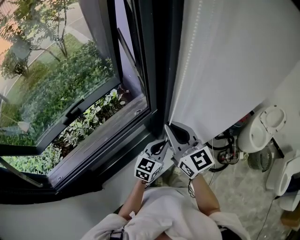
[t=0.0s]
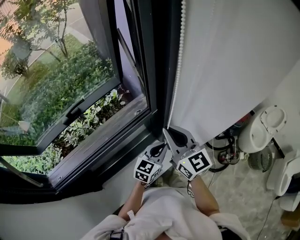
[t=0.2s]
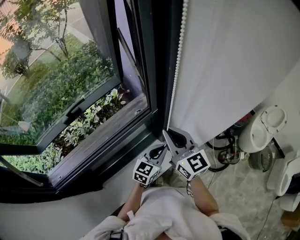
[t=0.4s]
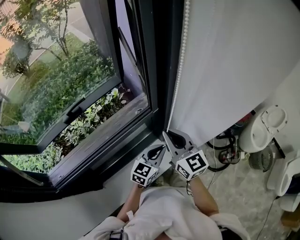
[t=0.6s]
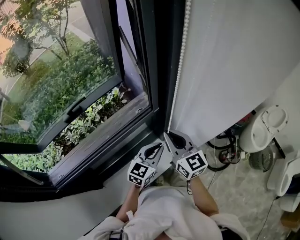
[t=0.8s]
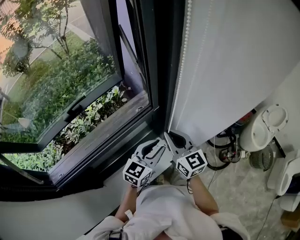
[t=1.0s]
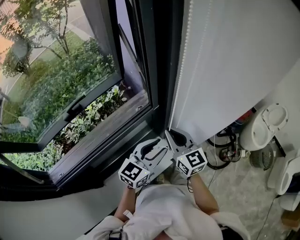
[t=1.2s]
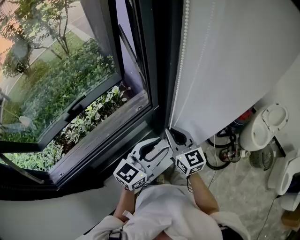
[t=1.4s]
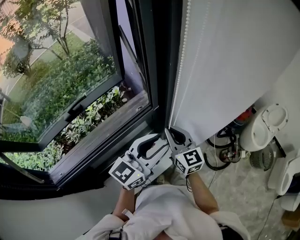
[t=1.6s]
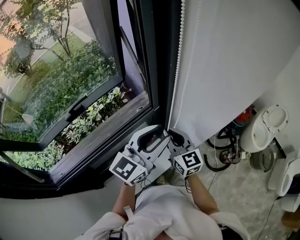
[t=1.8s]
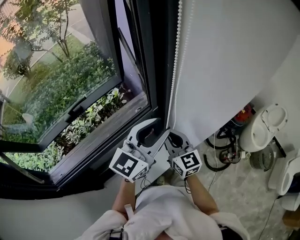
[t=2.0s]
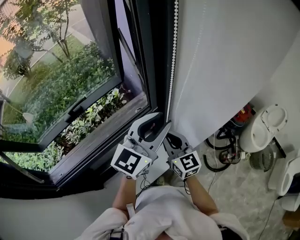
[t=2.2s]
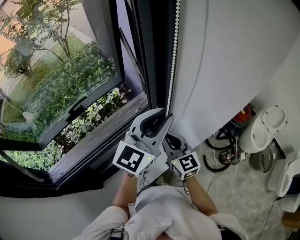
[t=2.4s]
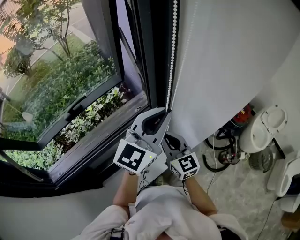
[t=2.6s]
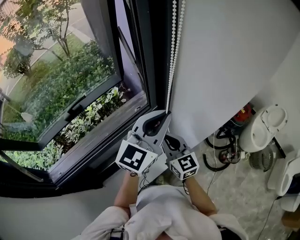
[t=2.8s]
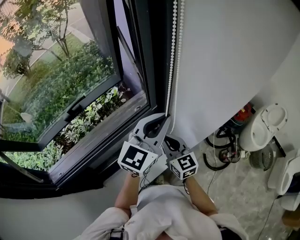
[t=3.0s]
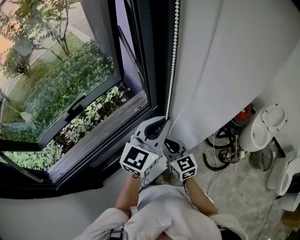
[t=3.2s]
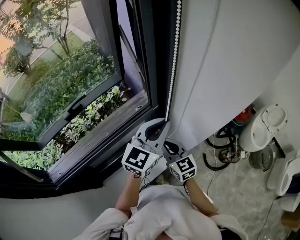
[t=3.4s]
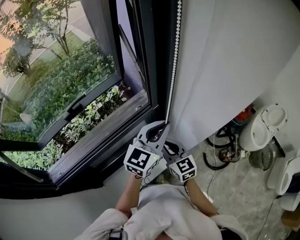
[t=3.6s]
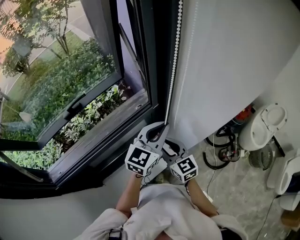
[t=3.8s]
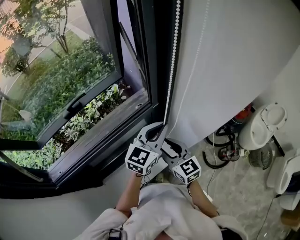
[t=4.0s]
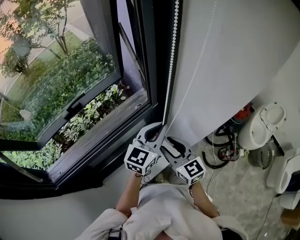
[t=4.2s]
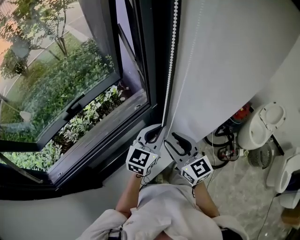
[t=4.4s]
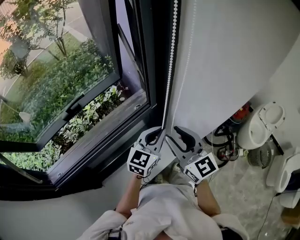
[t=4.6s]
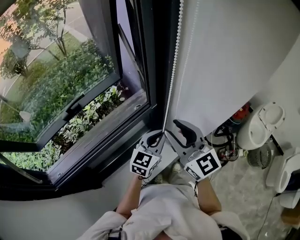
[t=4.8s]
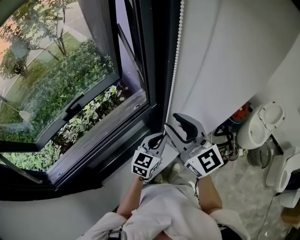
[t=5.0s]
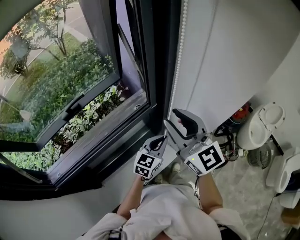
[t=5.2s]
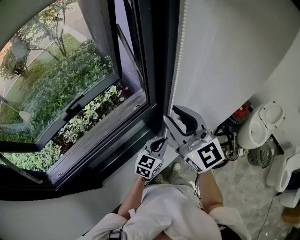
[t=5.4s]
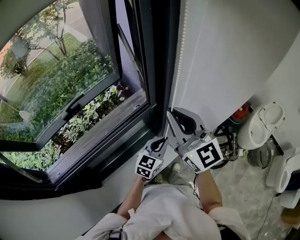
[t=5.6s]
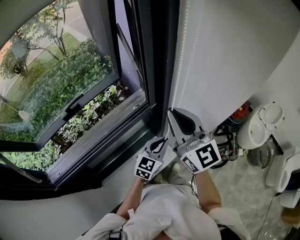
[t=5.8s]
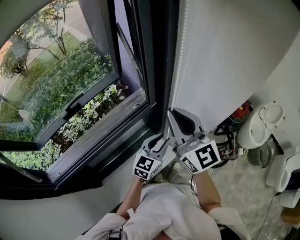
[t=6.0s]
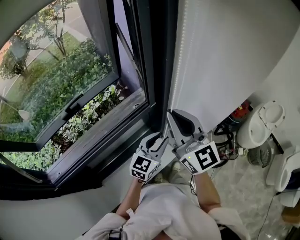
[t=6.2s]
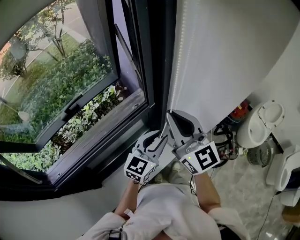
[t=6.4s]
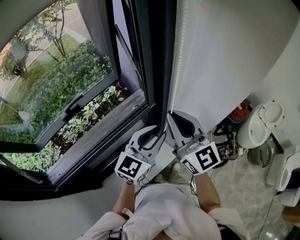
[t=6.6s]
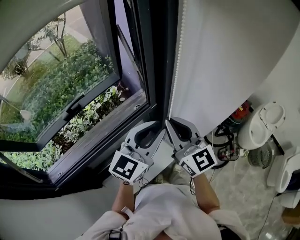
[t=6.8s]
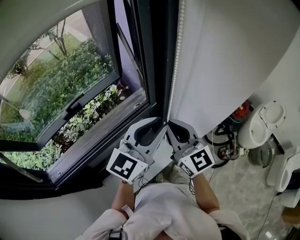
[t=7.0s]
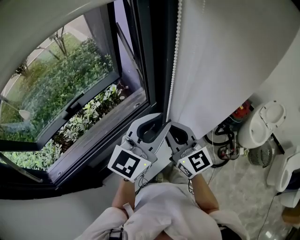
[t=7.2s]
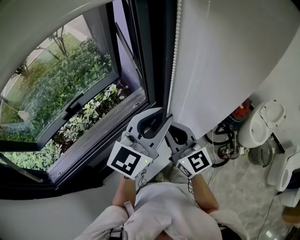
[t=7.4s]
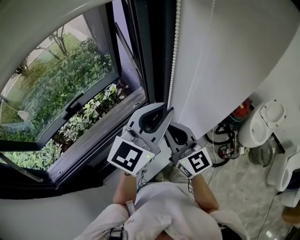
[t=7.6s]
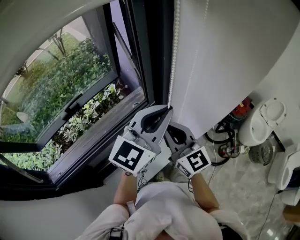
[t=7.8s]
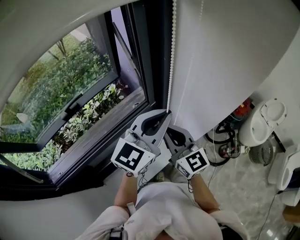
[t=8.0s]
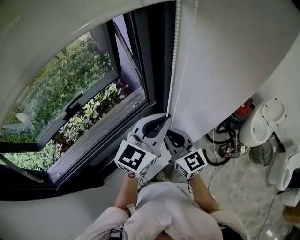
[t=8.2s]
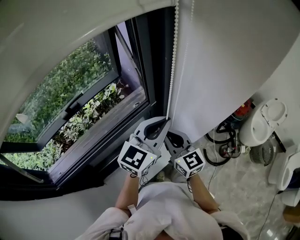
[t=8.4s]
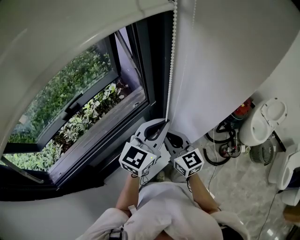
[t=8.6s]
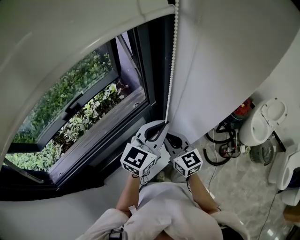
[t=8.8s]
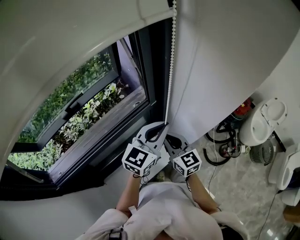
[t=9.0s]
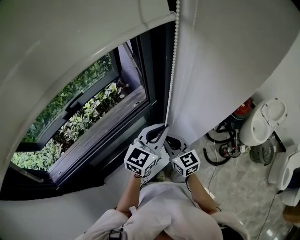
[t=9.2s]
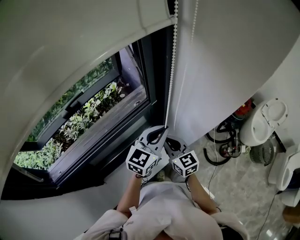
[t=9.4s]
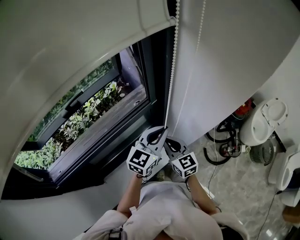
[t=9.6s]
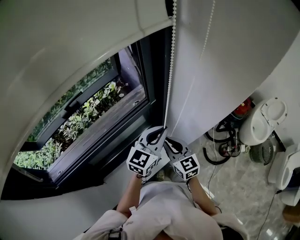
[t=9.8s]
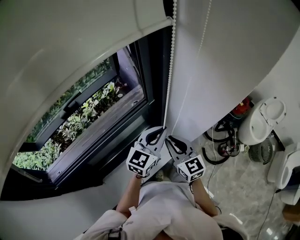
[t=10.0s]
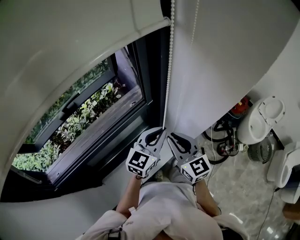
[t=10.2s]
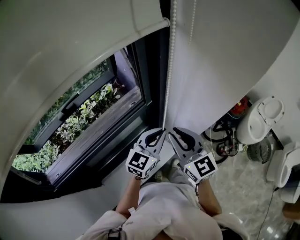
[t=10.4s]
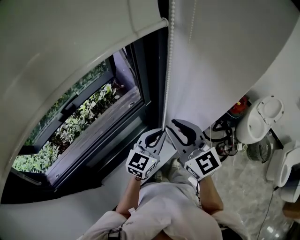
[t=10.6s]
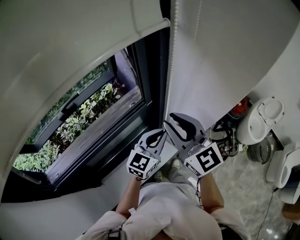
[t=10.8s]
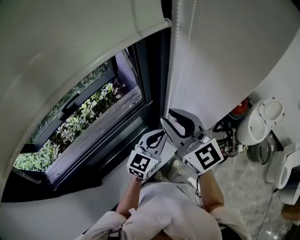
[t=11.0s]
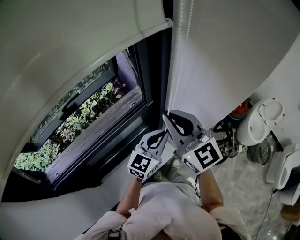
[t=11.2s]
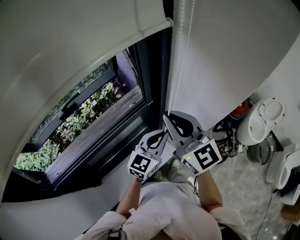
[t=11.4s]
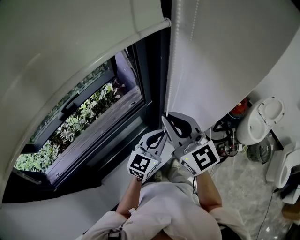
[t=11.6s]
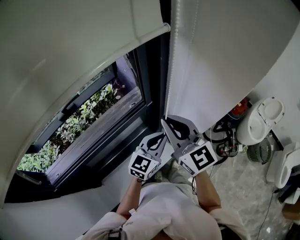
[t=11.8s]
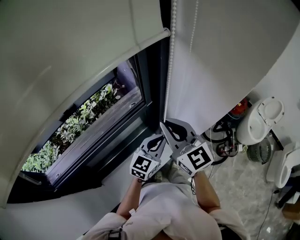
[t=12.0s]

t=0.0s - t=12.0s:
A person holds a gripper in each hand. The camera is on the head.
t=0.0s - t=1.6s: The left gripper is displaced upward by roughly 15 cm, and opens its fingers; the right gripper moves downward, roughly 10 cm.
t=1.6s - t=3.0s: The left gripper travels forward and upward by some 10 cm, and closes its fingers.
t=3.0s - t=4.4s: The left gripper heads downward, covering some 10 cm. The right gripper heads upward, covering roughly 5 cm, and opens its fingers.
t=4.4s - t=6.0s: The left gripper is displaced downward by roughly 10 cm, and opens its fingers, while the right gripper goes some 15 cm upward, and closes up.
t=6.0s - t=7.6s: The right gripper is displaced downward by some 5 cm; the left gripper travels upward by approximately 25 cm, and turns by approximately 20 degrees.
t=7.6s - t=9.0s: The grippers both shift downward by roughly 15 cm.
t=9.0s - t=10.4s: The left gripper shifts by approximately 5 cm. Meanwhile the right gripper shifts about 10 cm upward.

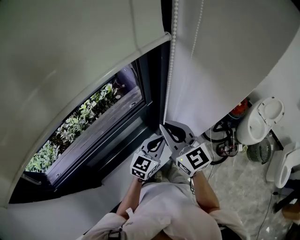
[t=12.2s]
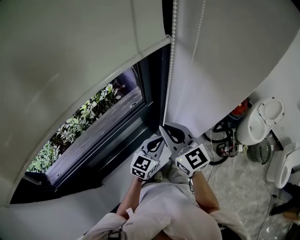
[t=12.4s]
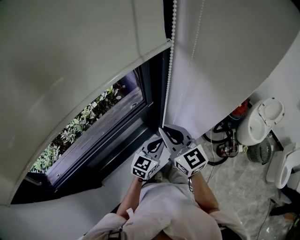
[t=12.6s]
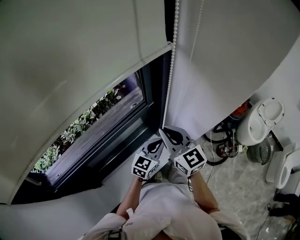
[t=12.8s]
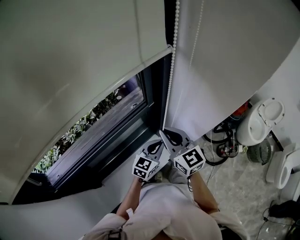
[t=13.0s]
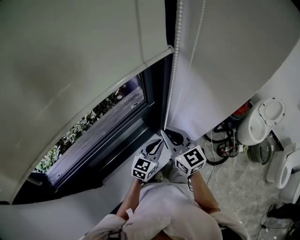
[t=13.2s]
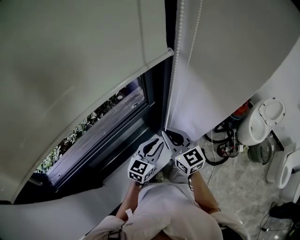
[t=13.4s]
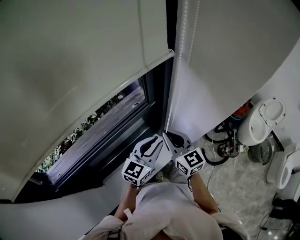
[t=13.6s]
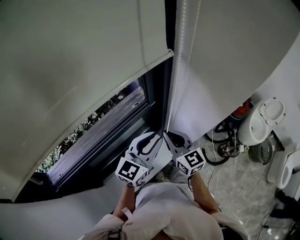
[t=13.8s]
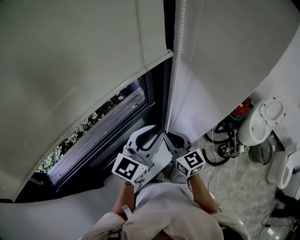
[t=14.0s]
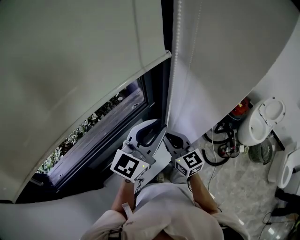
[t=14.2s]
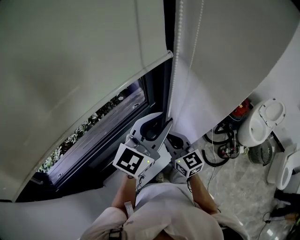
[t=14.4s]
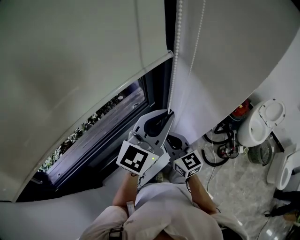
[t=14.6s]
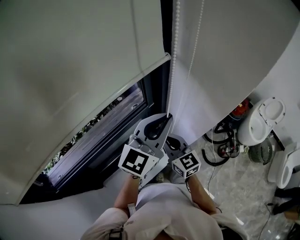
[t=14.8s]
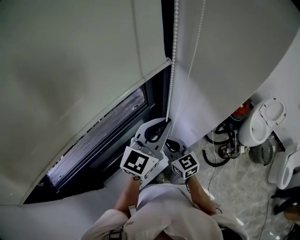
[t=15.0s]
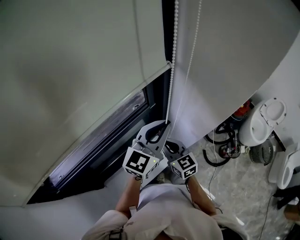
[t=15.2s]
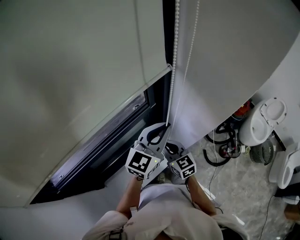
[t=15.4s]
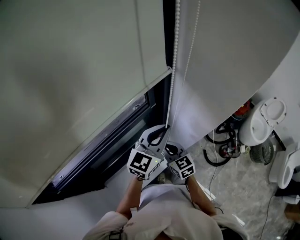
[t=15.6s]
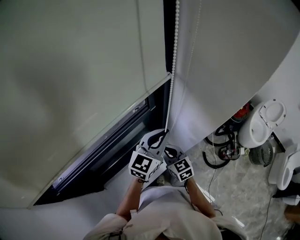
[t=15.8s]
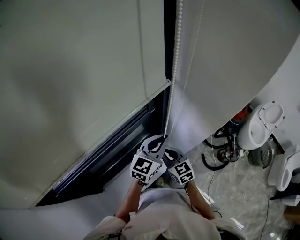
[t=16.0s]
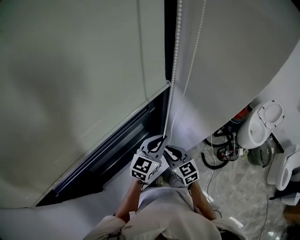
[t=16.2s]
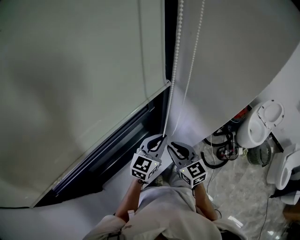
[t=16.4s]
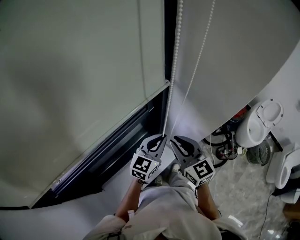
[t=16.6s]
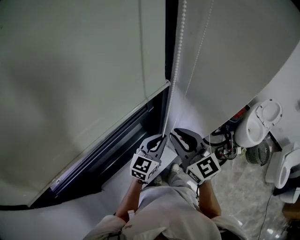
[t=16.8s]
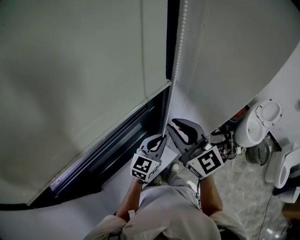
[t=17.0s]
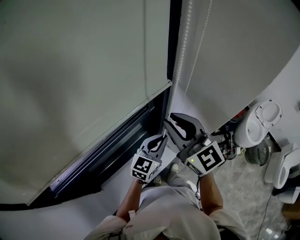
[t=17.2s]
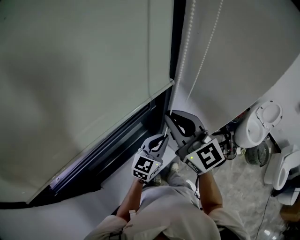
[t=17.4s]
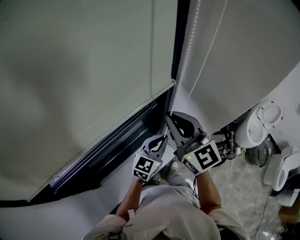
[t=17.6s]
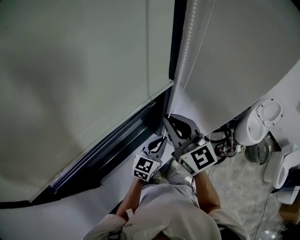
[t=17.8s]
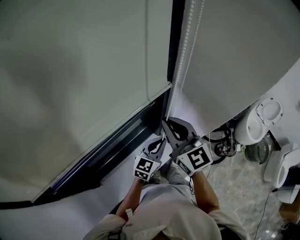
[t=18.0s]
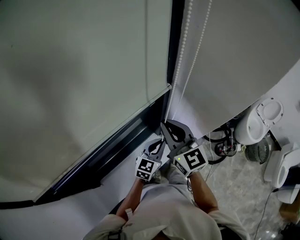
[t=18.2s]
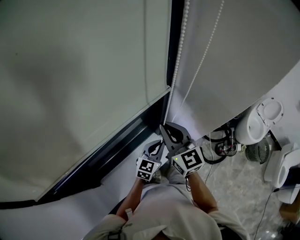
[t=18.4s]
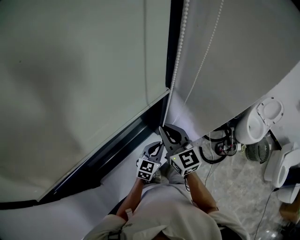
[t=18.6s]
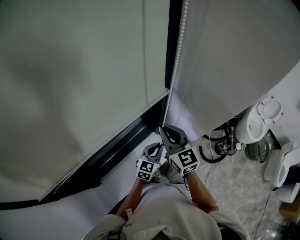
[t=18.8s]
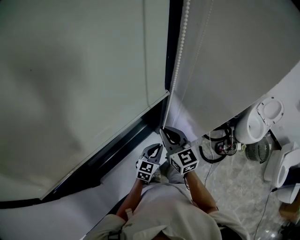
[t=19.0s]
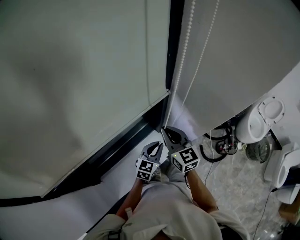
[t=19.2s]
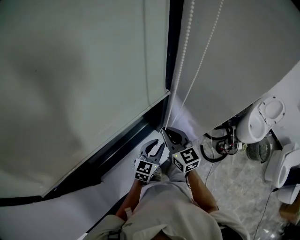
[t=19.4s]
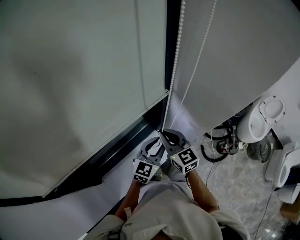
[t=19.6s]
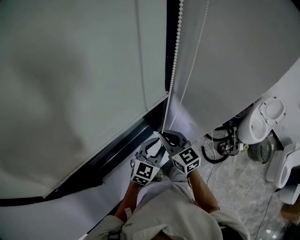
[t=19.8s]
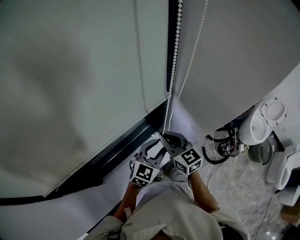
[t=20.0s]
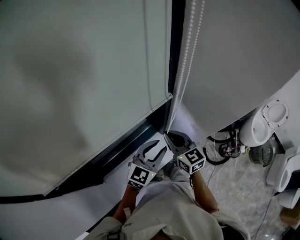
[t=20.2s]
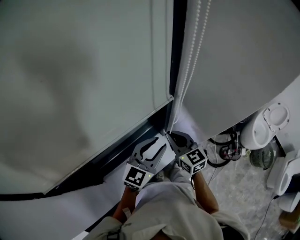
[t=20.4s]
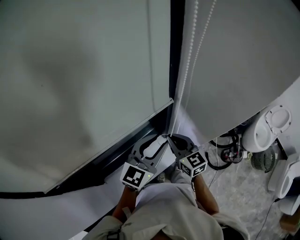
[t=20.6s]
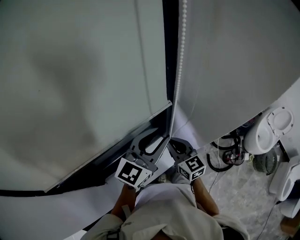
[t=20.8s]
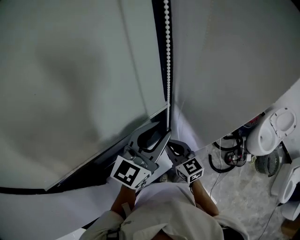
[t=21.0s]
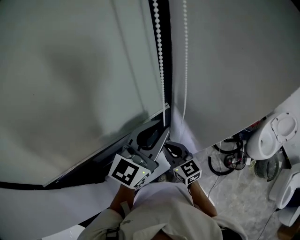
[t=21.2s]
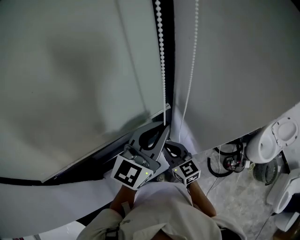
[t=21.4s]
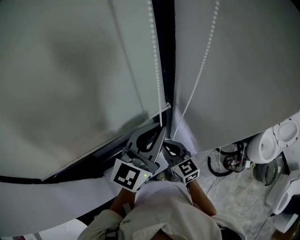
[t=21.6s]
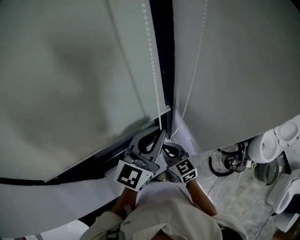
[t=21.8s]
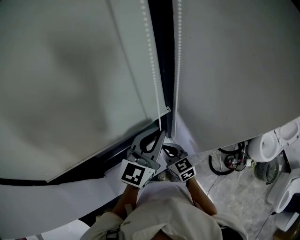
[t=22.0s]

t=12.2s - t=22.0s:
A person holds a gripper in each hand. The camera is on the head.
t=12.2s - t=13.6s: The left gripper ends up roughly 5 cm from where it was, while the right gripper is displaced downward by about 10 cm.
t=13.6s - t=15.0s: The left gripper goes about 15 cm upward.
t=15.0s - t=16.4s: The left gripper heads downward, covering about 15 cm; the right gripper goes downward and returns, approximately 10 cm each way.
t=16.4s - t=17.8s: The right gripper shifts roughly 15 cm upward.
t=17.8s - t=19.2s: The two grippers go roughly 15 cm downward.
t=19.2s - t=20.6s: The left gripper travels upward by some 25 cm, rotates some 20 degrees, and opens.
t=20.6s - t=22.0s: The right gripper goes some 5 cm downward. Meanwhile the left gripper closes its fingers.

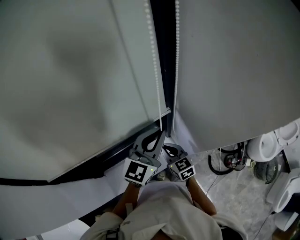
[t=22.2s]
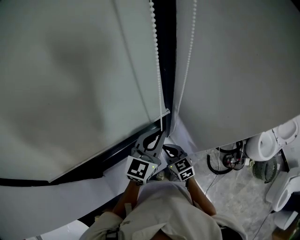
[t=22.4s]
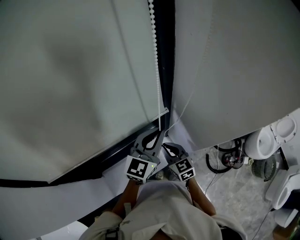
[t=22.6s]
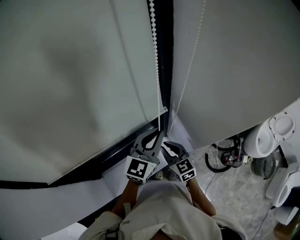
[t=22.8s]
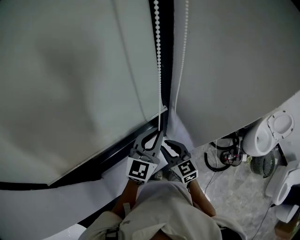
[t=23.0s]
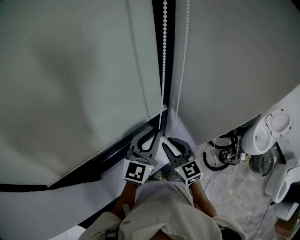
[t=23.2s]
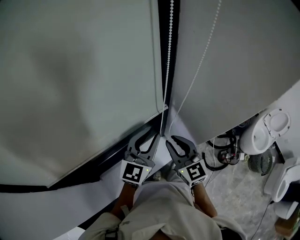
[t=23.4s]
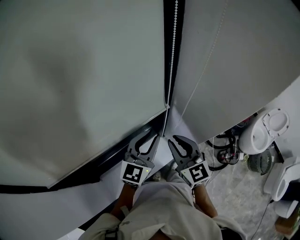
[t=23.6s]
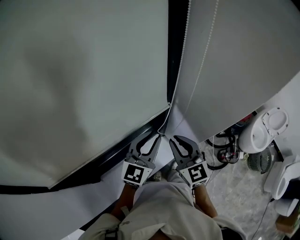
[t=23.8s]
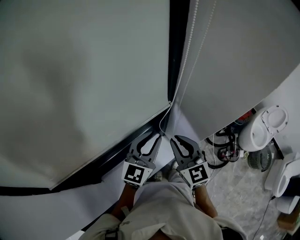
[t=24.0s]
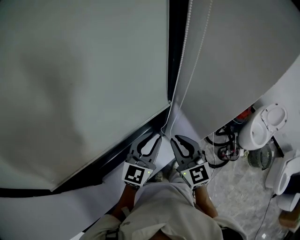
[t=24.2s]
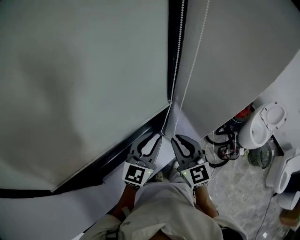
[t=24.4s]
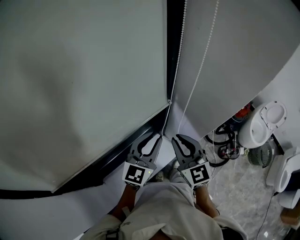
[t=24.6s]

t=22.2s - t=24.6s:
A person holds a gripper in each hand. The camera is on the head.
t=22.2s - t=23.4s: The right gripper is displaced upward by some 15 cm, turns by about 20 degrees, and opens.
t=23.4s - t=24.6s: The right gripper ends up about 5 cm from where it was.
